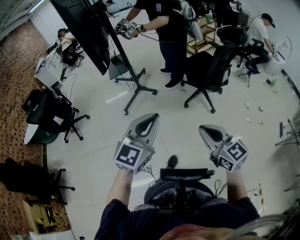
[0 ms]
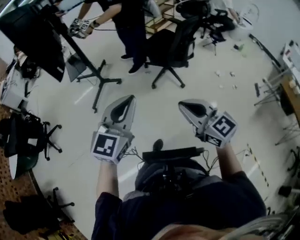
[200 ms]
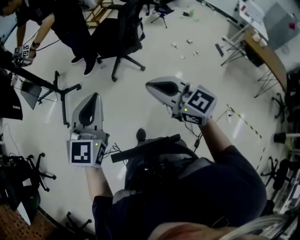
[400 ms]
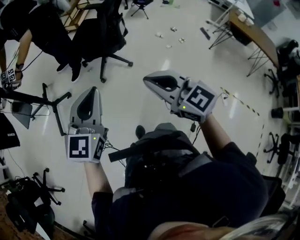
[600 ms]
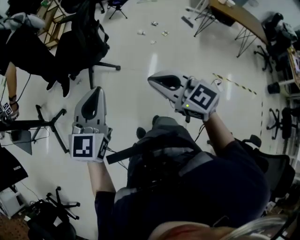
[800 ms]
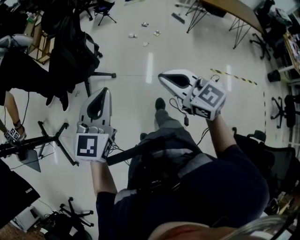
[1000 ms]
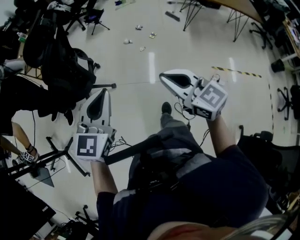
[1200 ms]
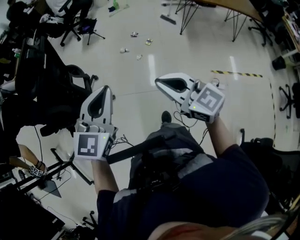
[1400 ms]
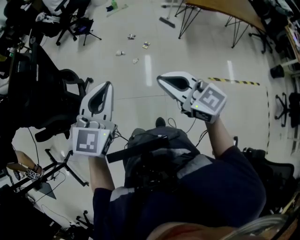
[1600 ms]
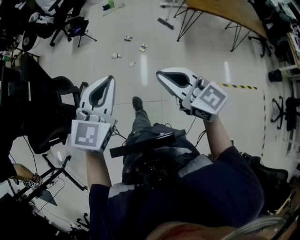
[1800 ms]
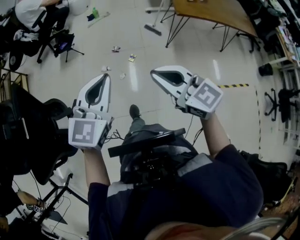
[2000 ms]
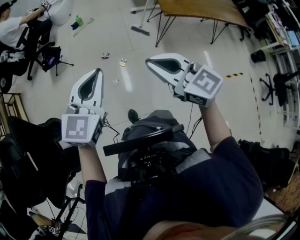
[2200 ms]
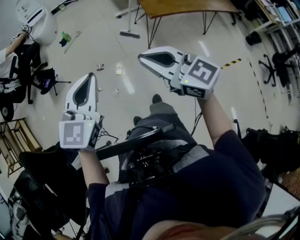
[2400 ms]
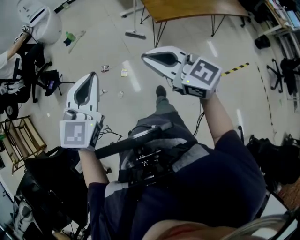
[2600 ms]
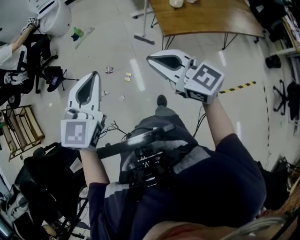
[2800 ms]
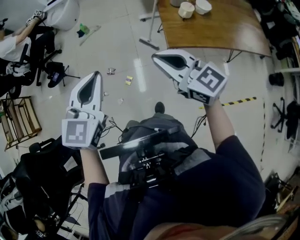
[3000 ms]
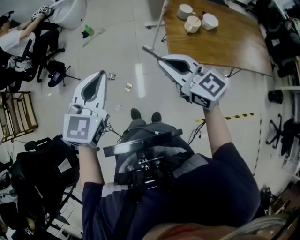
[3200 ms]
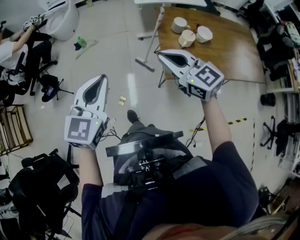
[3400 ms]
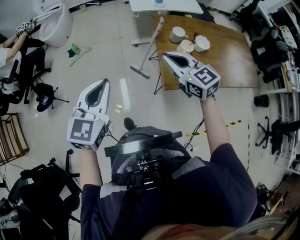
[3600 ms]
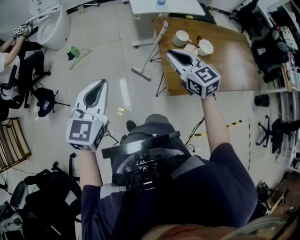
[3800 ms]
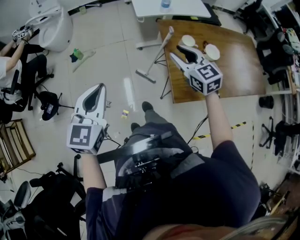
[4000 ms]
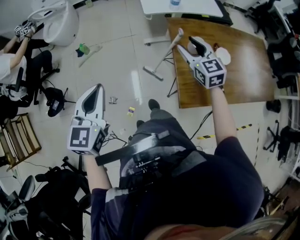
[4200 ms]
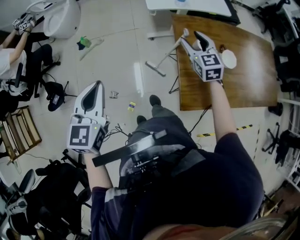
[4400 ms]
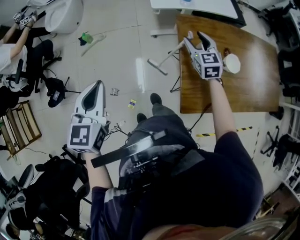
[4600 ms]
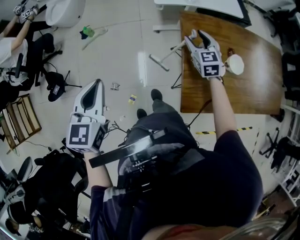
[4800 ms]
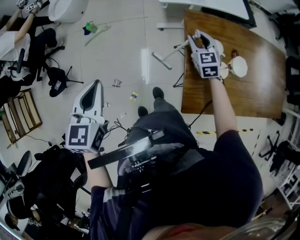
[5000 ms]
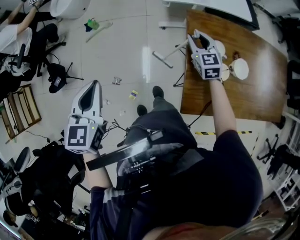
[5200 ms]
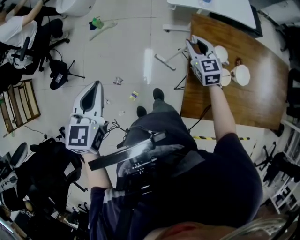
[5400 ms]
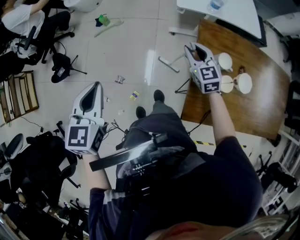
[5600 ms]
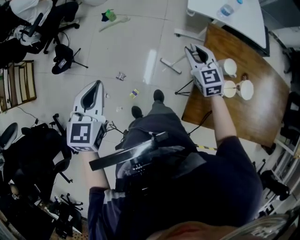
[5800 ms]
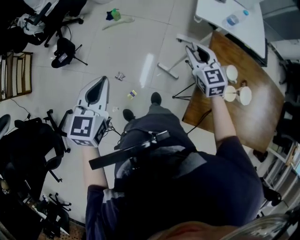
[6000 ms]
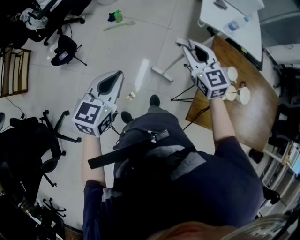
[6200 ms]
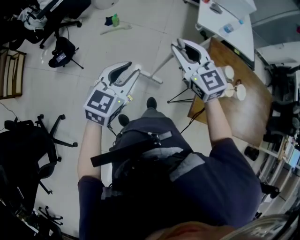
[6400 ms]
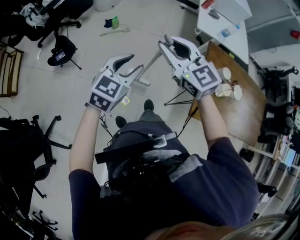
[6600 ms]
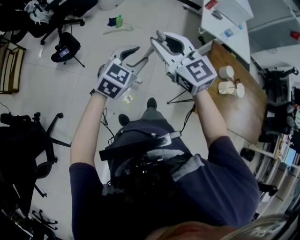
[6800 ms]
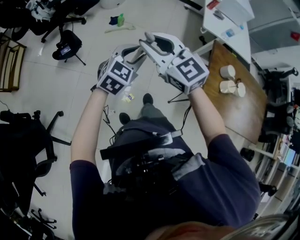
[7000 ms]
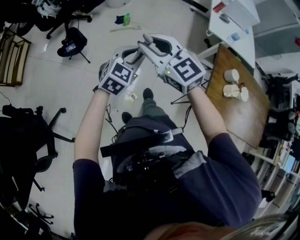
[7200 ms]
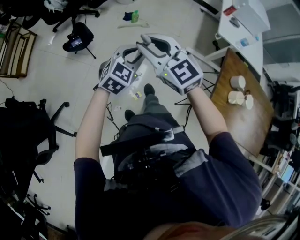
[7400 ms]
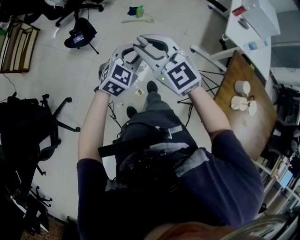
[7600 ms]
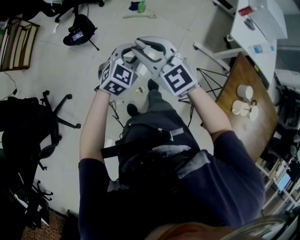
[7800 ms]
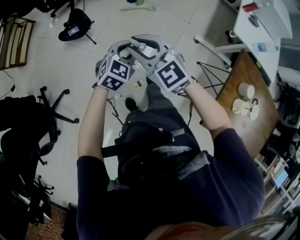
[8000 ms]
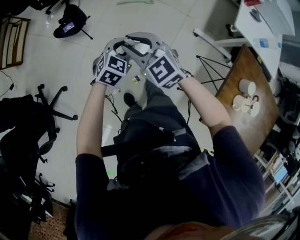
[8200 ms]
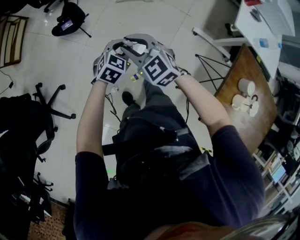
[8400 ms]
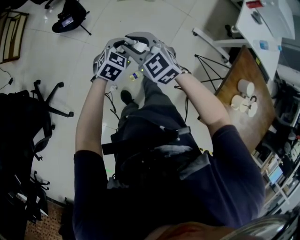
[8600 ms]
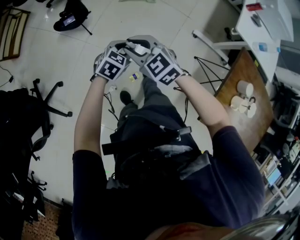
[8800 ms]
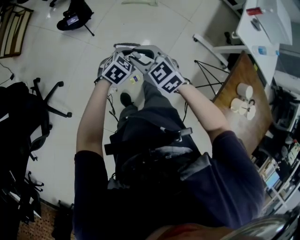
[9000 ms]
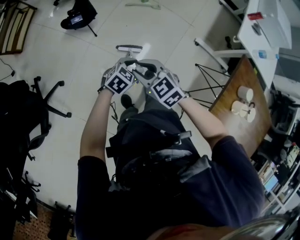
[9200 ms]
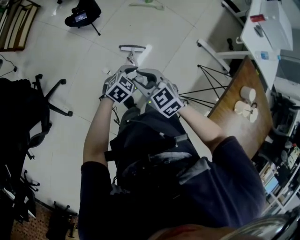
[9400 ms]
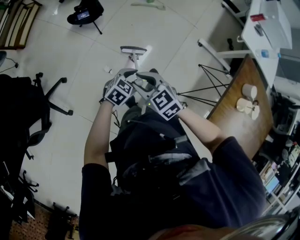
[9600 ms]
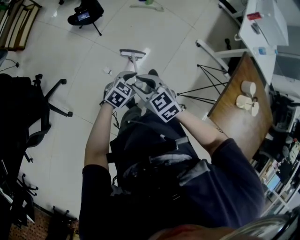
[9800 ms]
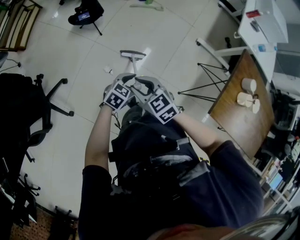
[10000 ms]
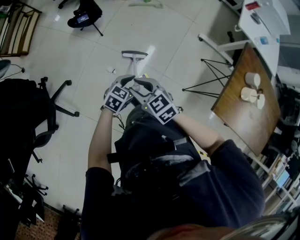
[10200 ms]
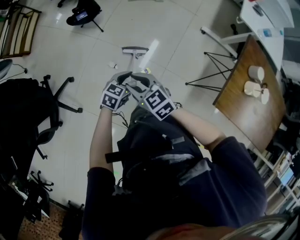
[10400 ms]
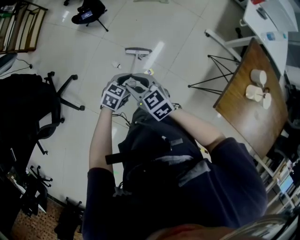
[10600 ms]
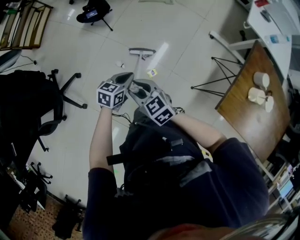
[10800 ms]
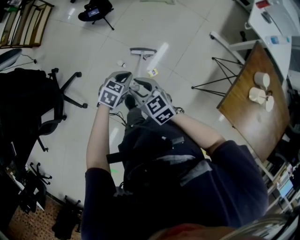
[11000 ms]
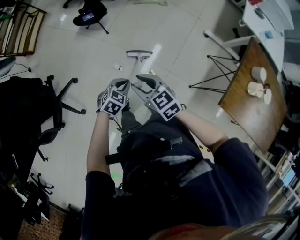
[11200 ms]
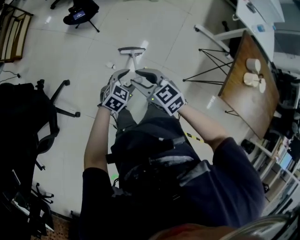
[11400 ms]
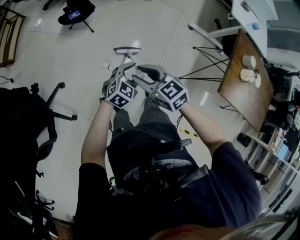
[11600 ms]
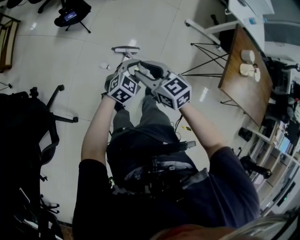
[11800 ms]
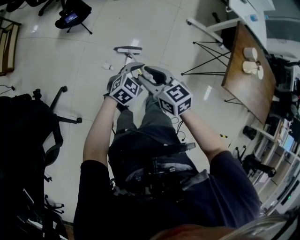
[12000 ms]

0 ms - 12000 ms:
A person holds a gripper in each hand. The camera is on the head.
0 ms - 1600 ms: The two grippers travel together, about 60 cm. The left gripper rotates about 50 degrees, while the right gripper rotates some 50 degrees.
1600 ms - 3000 ms: The pair of grippers is taken forward and to the right, about 70 cm.
3000 ms - 4400 ms: The grippers both shift forward by some 40 cm. The right gripper rotates some 40 degrees, and opens up.
4400 ms - 6000 ms: The left gripper shifts roughly 10 cm to the left. Meanwhile the right gripper goes roughly 15 cm to the left, rotates about 30 degrees, and closes its fingers.
6000 ms - 7600 ms: The right gripper is displaced to the left by roughly 40 cm, and turns by about 40 degrees; the left gripper is displaced to the left, downward and forward by some 15 cm, changes its angle by some 20 degrees, and opens.
7600 ms - 9000 ms: Both grippers travel together downward, some 20 cm. The right gripper changes its angle by roughly 30 degrees. The left gripper turns by about 30 degrees.
9000 ms - 10400 ms: Both grippers travel together backward, roughly 20 cm.
10400 ms - 12000 ms: The right gripper is displaced to the left by roughly 5 cm, and rotates about 20 degrees. The left gripper changes its angle by some 30 degrees, and closes and opens again.

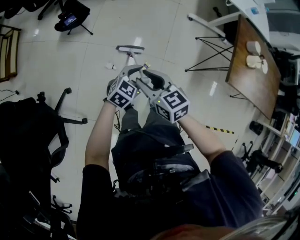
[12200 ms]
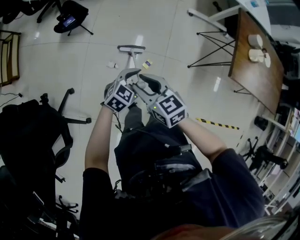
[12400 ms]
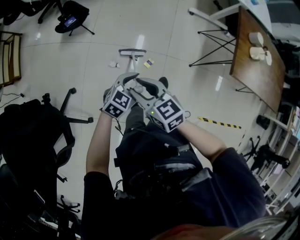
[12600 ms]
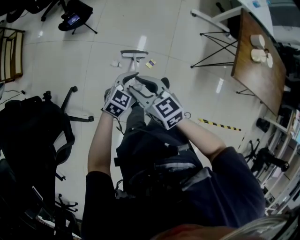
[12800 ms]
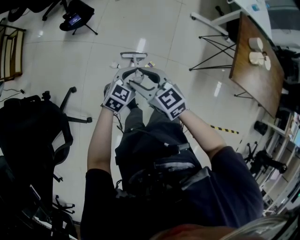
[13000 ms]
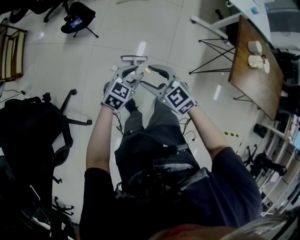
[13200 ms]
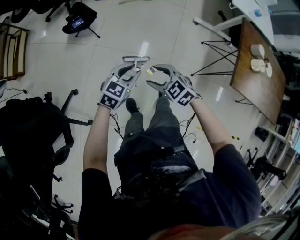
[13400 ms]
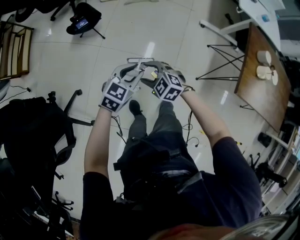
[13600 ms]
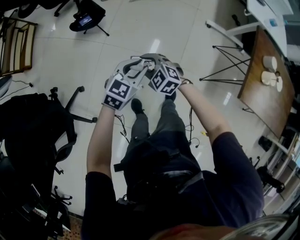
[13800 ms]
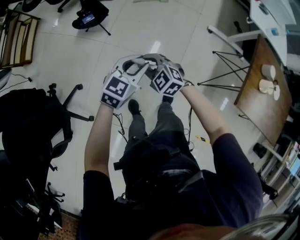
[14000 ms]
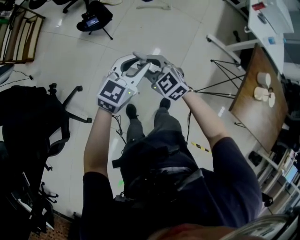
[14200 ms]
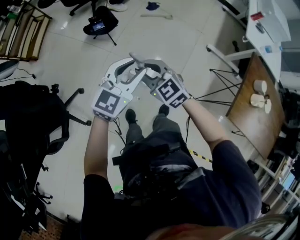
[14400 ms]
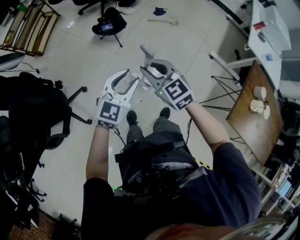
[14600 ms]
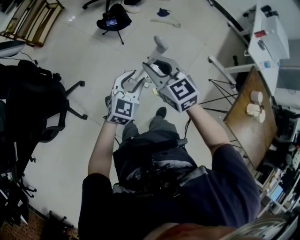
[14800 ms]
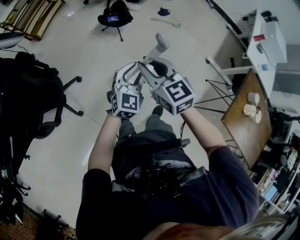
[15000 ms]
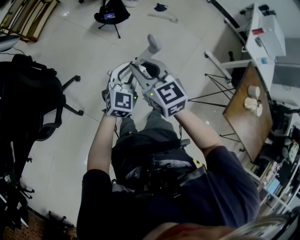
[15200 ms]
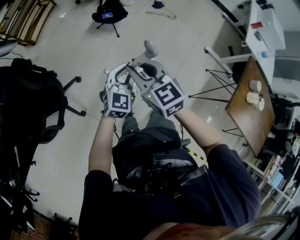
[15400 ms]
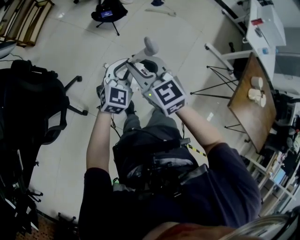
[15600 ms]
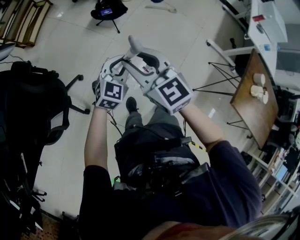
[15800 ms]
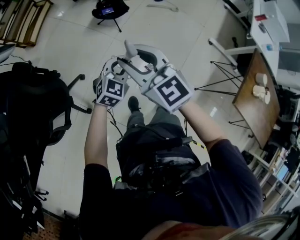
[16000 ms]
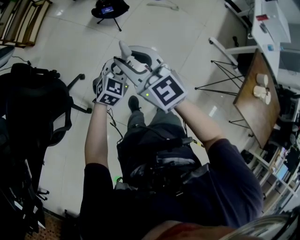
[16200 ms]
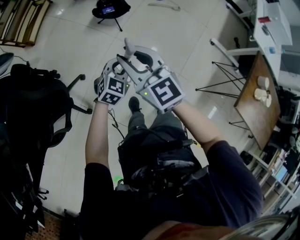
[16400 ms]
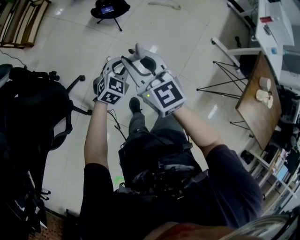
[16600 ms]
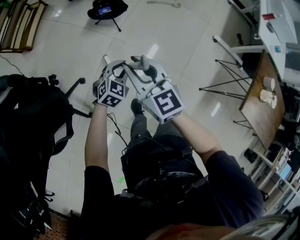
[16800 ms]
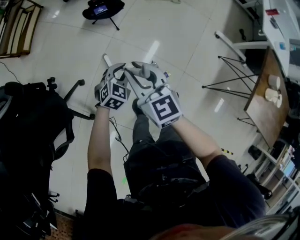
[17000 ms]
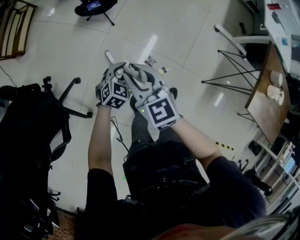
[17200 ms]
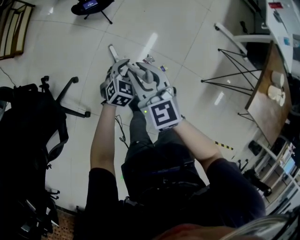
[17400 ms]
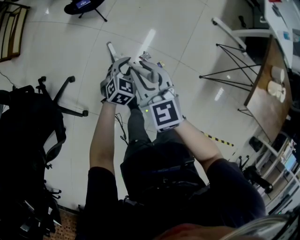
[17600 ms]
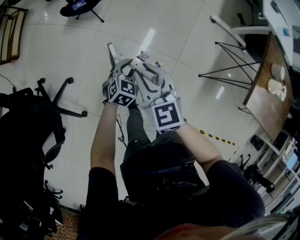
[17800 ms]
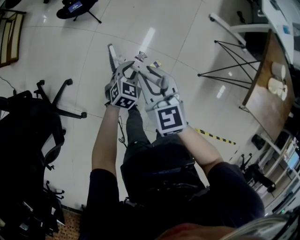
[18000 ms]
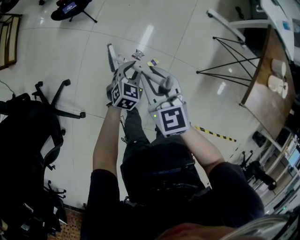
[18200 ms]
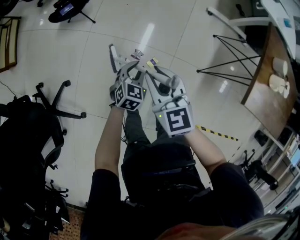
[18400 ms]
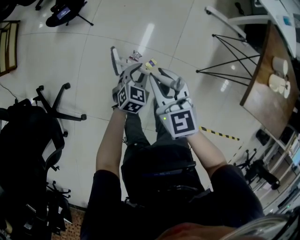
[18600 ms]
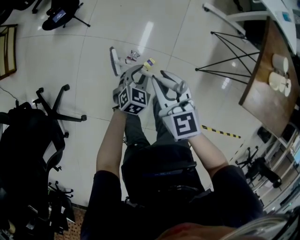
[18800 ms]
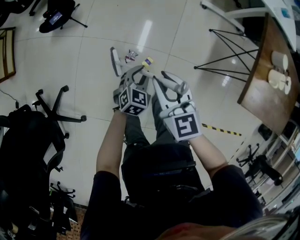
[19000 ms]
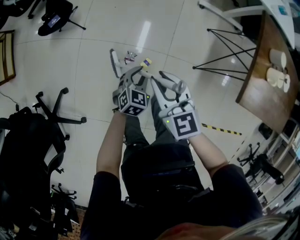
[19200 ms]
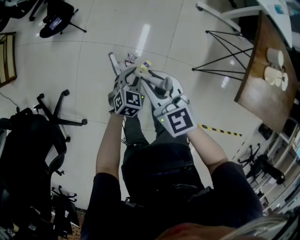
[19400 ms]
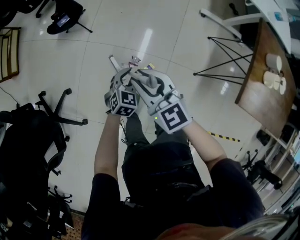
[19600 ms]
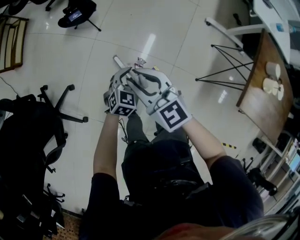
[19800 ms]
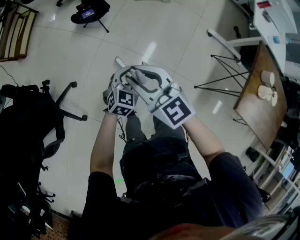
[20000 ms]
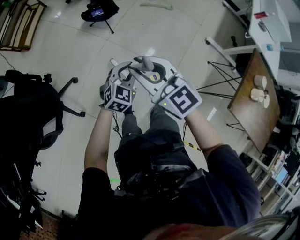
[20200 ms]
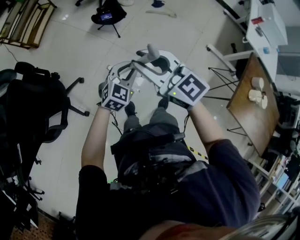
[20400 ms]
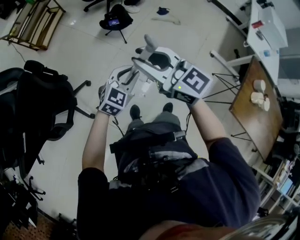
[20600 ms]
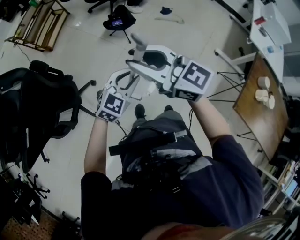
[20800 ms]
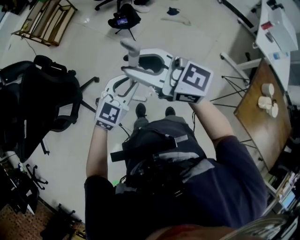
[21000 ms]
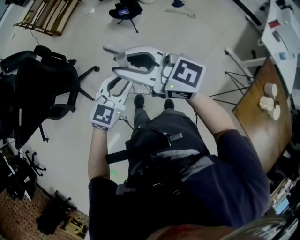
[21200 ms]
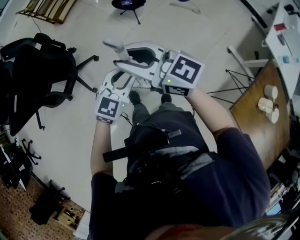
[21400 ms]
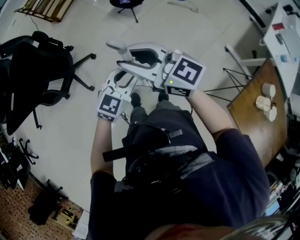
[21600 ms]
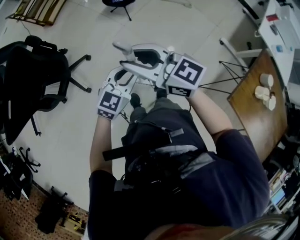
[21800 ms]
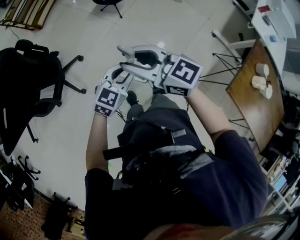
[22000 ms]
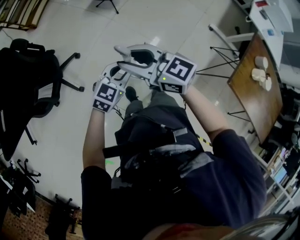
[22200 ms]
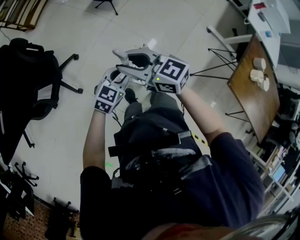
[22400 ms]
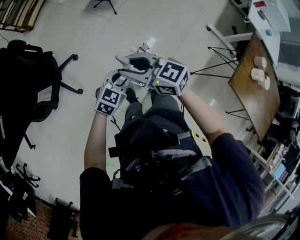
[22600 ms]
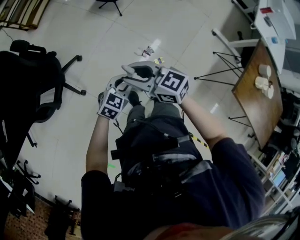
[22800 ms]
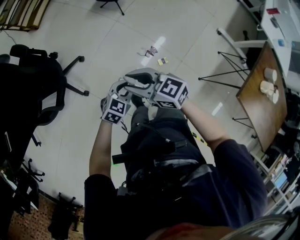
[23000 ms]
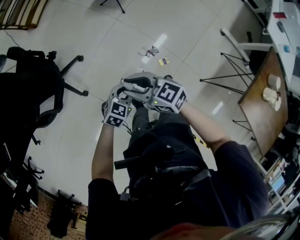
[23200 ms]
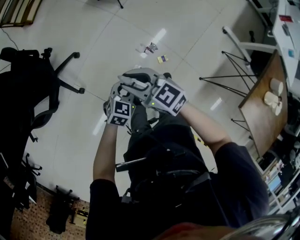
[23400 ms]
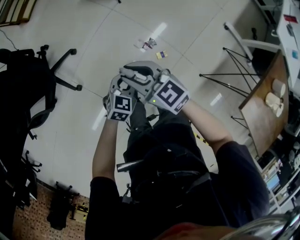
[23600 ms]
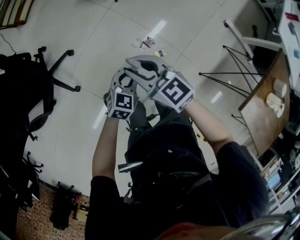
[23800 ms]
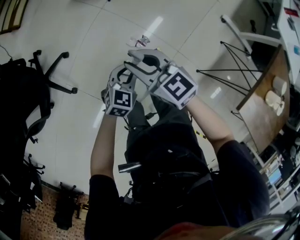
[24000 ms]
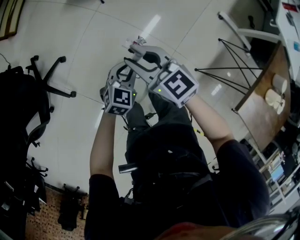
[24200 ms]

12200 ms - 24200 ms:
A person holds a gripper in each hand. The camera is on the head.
12200 ms - 13800 ms: The left gripper goes approximately 10 cm forward, while the right gripper goes about 15 cm downward and forward, twists roughly 40 degrees counterclockwise, seen from behind, and opens and closes again.
13800 ms - 15200 ms: The left gripper moves to the left and upward, some 15 cm, and turns by some 30 degrees, while the right gripper moves upward and to the left, approximately 25 cm, and rotates some 30 degrees.
15200 ms - 16600 ms: The left gripper is displaced downward and forward by approximately 10 cm, and rotates roughly 20 degrees. Meanwhile the right gripper moves forward, roughly 5 cm.
16600 ms - 18200 ms: Both grippers travel together to the right and downward, approximately 25 cm. The right gripper rotates roughly 30 degrees.
18200 ms - 19800 ms: Both grippers move upward, roughly 5 cm. The left gripper reaches roughly 10 cm to the right, then returns; the right gripper travels to the right and back again, approximately 10 cm each way, and rotates roughly 20 degrees.
19800 ms - 21200 ms: The two grippers go approximately 30 cm upward. The left gripper changes its angle by about 20 degrees. Meanwhile the right gripper turns by some 50 degrees.
21200 ms - 22600 ms: The left gripper heads downward, covering some 15 cm, while the right gripper travels downward and to the left by some 20 cm, and swivels some 30 degrees.
22600 ms - 24200 ms: The grippers both shift to the right, downward and forward by some 25 cm.
